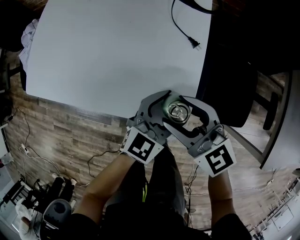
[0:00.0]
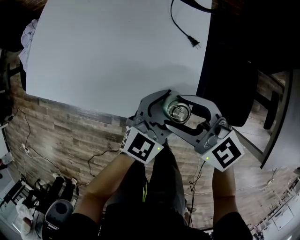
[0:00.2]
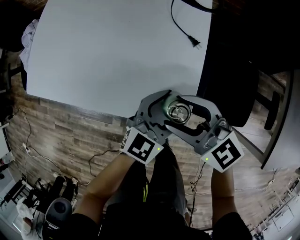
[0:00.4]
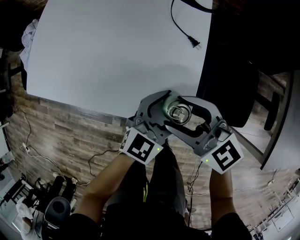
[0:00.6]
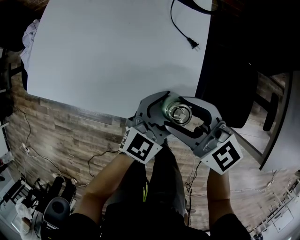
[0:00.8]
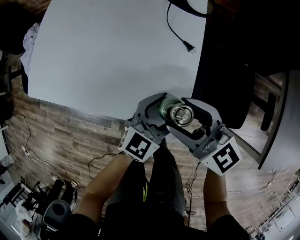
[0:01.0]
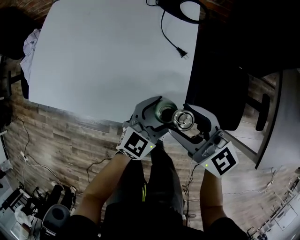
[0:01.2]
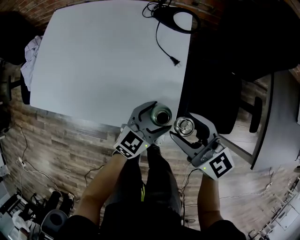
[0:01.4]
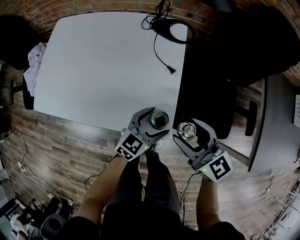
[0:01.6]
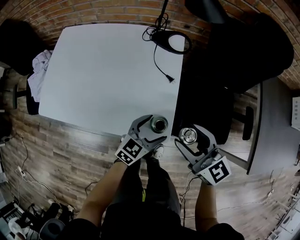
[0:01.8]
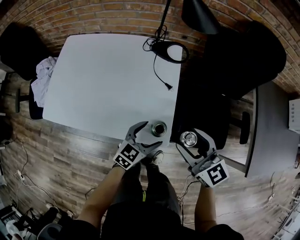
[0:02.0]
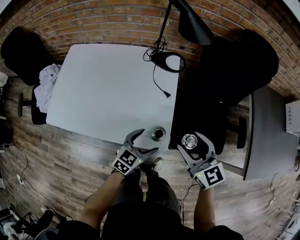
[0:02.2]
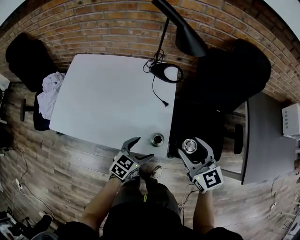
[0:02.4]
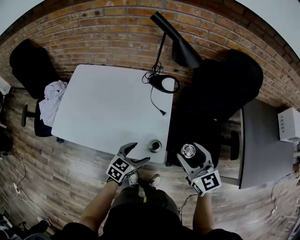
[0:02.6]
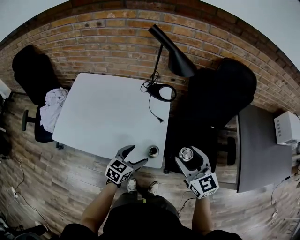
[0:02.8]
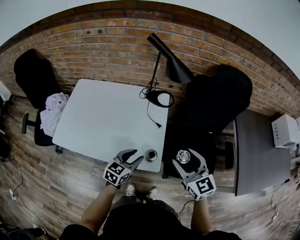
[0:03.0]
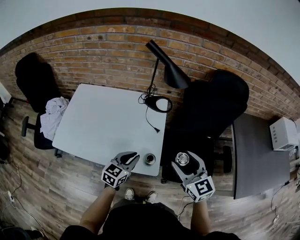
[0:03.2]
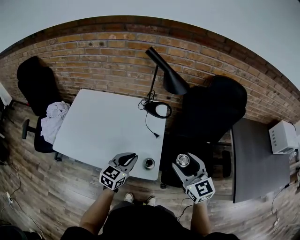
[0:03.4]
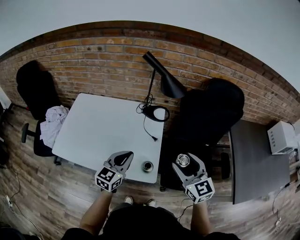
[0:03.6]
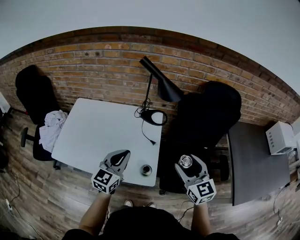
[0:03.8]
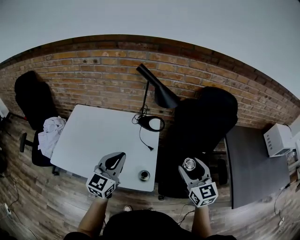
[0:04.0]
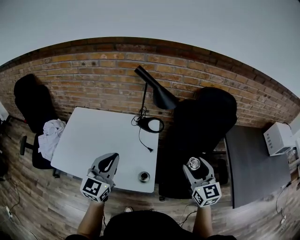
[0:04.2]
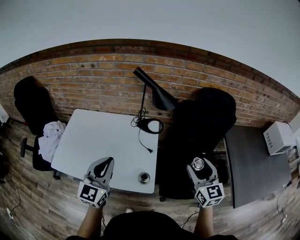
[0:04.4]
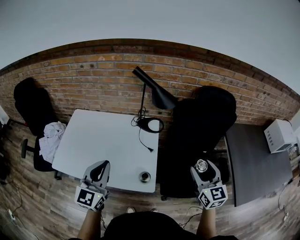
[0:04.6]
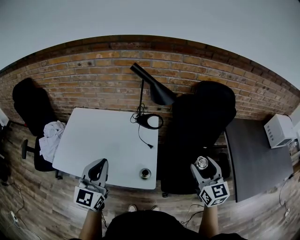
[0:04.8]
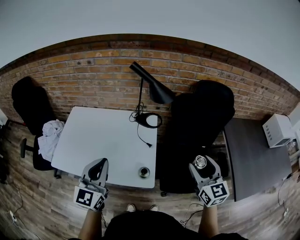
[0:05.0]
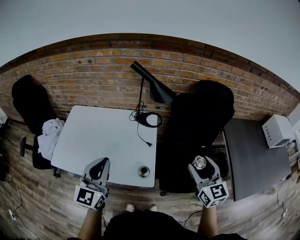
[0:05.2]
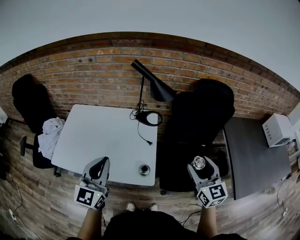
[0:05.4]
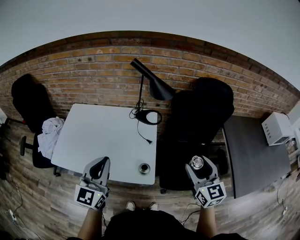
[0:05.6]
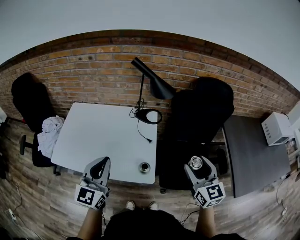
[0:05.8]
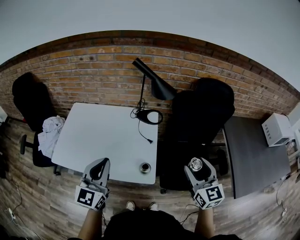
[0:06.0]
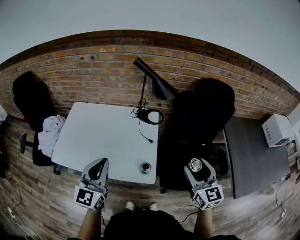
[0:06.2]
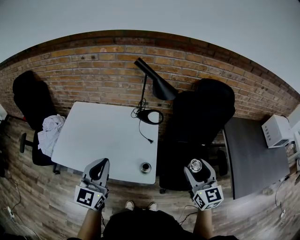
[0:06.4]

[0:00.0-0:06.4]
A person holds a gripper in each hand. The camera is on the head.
0.0 to 1.6 s: The right gripper is displaced to the right and upward by roughly 10 cm.
1.6 to 3.2 s: The right gripper heads upward and to the right, covering approximately 15 cm. Meanwhile the left gripper is displaced upward and to the left by some 15 cm, and closes its fingers.
3.2 to 4.8 s: The left gripper travels upward by roughly 20 cm, and rotates some 30 degrees, while the right gripper shifts about 15 cm to the right and upward.
4.8 to 6.4 s: The right gripper ends up roughly 5 cm from where it was.

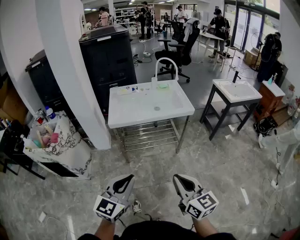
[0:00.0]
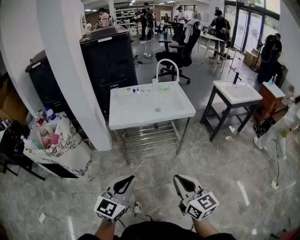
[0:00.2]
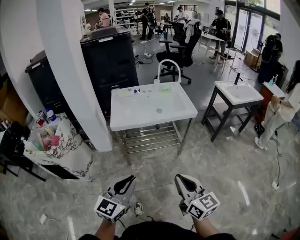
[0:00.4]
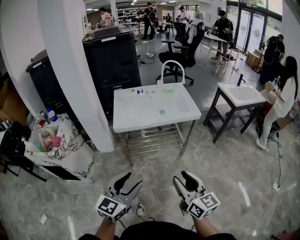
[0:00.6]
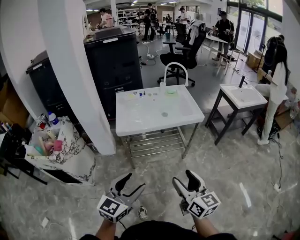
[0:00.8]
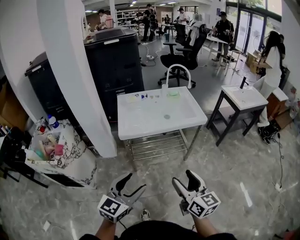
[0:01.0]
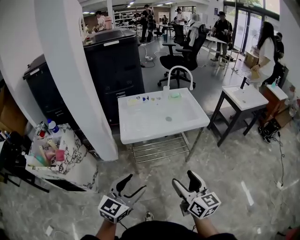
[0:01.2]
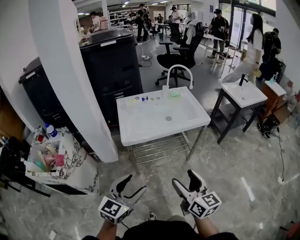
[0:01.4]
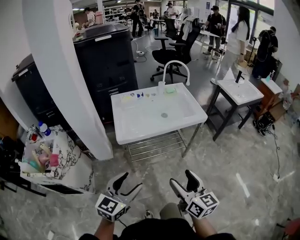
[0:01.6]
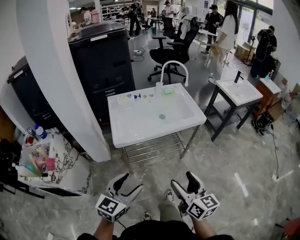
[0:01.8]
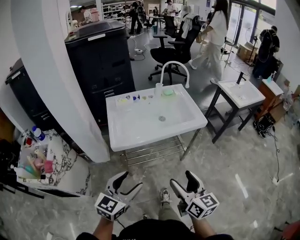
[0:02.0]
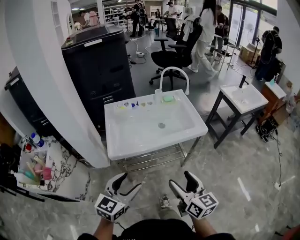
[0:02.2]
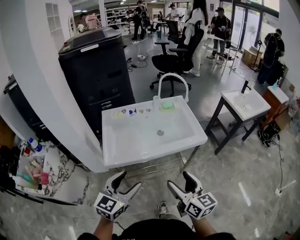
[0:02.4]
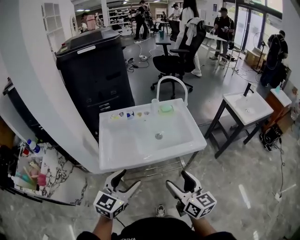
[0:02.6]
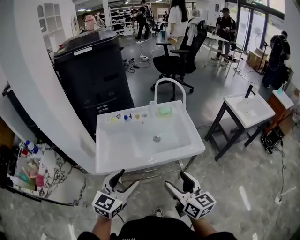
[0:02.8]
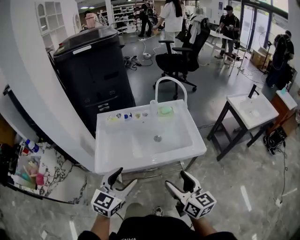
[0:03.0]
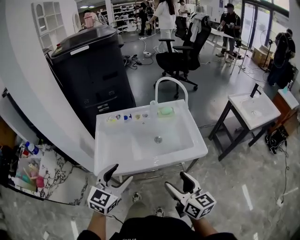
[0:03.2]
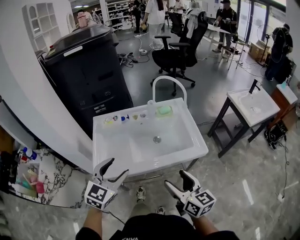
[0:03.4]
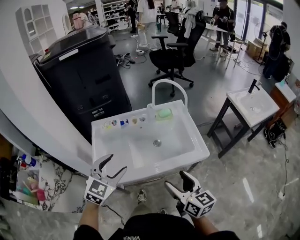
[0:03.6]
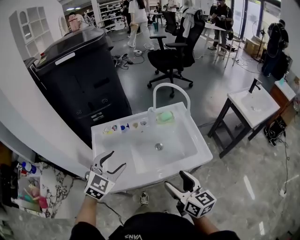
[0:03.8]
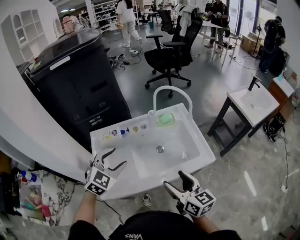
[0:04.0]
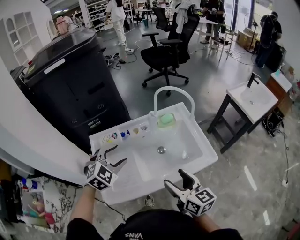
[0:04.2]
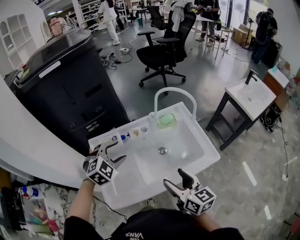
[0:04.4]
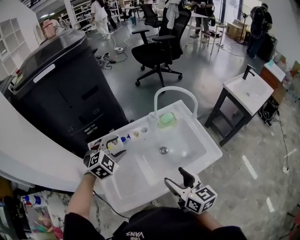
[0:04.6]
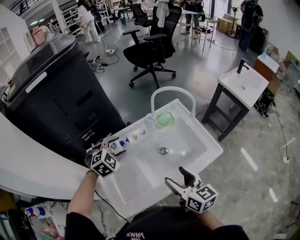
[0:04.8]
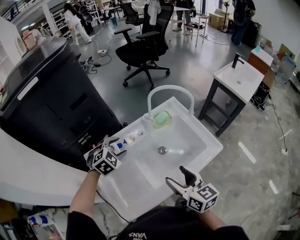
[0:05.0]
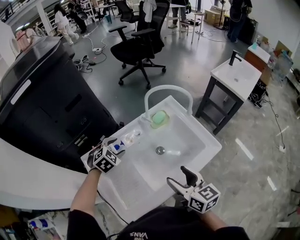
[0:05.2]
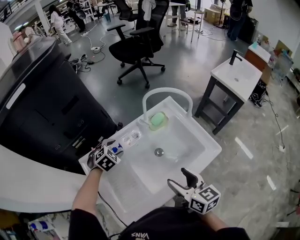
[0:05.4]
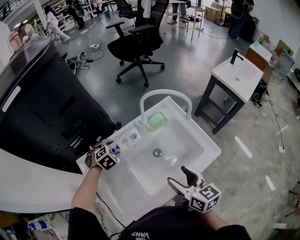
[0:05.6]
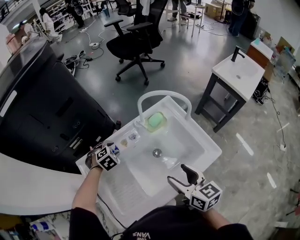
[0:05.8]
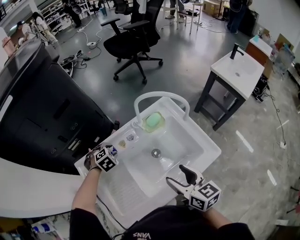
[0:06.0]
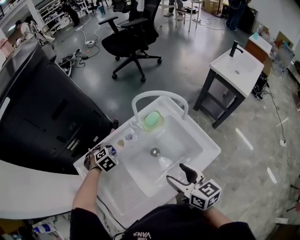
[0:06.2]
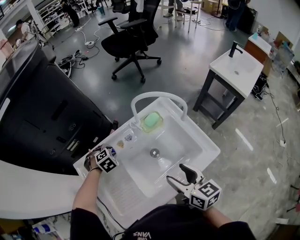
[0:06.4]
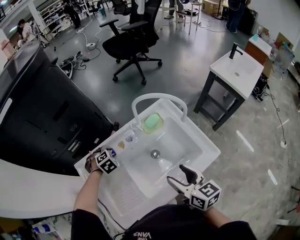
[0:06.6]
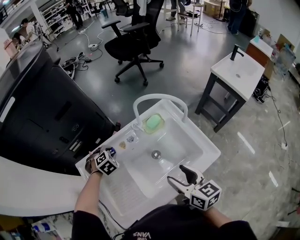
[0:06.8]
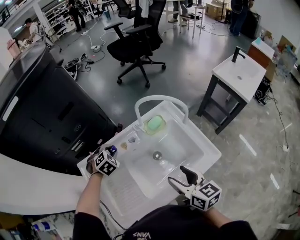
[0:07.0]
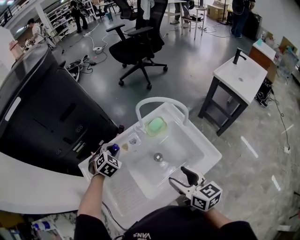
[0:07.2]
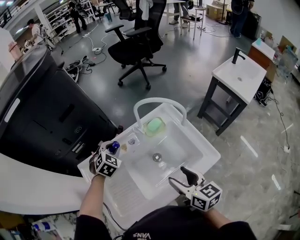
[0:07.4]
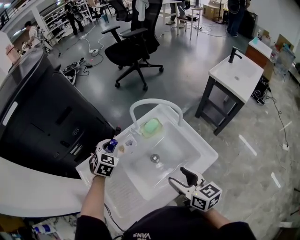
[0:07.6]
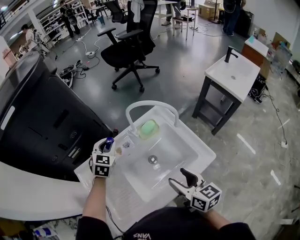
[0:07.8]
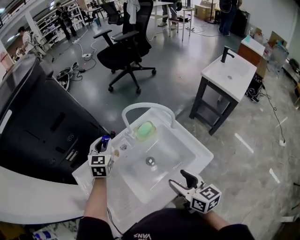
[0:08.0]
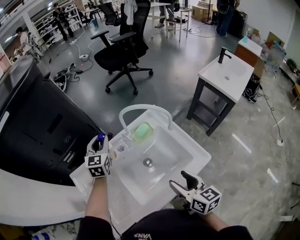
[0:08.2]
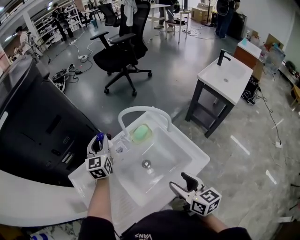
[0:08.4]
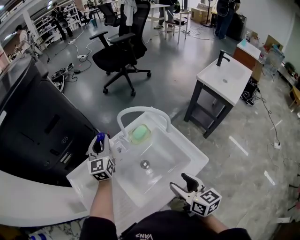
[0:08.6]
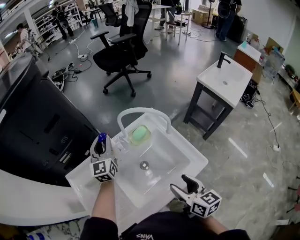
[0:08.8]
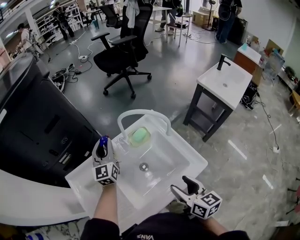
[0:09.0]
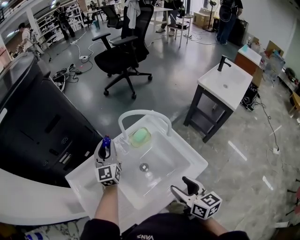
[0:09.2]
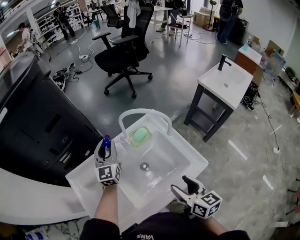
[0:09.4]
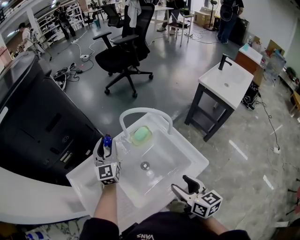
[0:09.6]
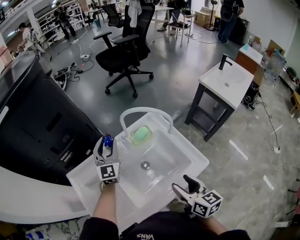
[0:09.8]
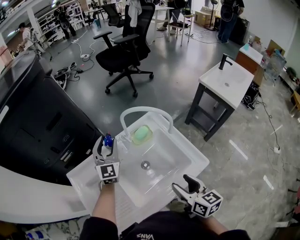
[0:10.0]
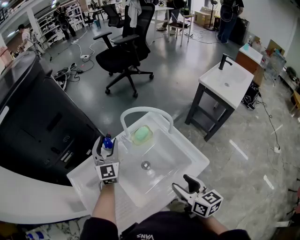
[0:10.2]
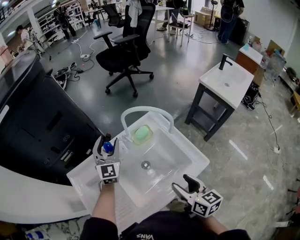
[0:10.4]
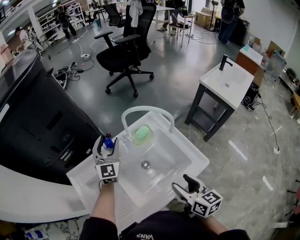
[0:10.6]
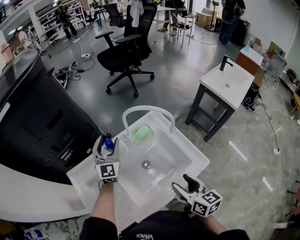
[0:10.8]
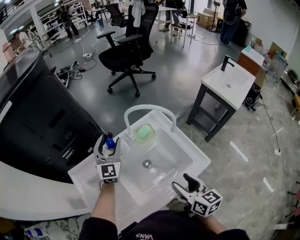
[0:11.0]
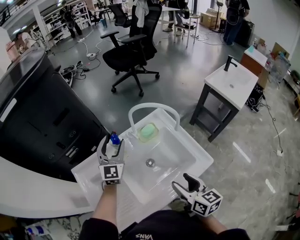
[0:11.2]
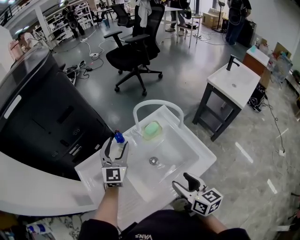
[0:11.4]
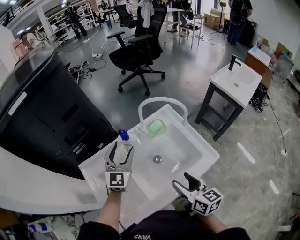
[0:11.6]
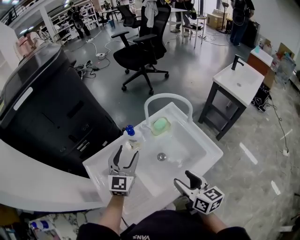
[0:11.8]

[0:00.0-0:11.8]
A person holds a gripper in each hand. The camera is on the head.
0.0 to 1.4 s: The left gripper heads to the left and forward, covering about 15 cm, and opens. Meanwhile the right gripper goes roughly 15 cm forward and to the left, and opens.
1.4 to 3.0 s: Both grippers travel together forward, roughly 25 cm.
3.0 to 4.4 s: The left gripper travels forward by roughly 30 cm, and rotates some 50 degrees. Meanwhile the right gripper is displaced forward and to the left by roughly 20 cm.
4.4 to 6.0 s: The left gripper goes roughly 25 cm downward and forward, and turns by roughly 30 degrees; the right gripper goes about 10 cm forward.
6.0 to 7.4 s: The left gripper heads upward, covering approximately 10 cm, and changes its angle by approximately 30 degrees.
7.4 to 8.8 s: The right gripper shifts approximately 5 cm to the right, while the left gripper moves upward and forward, about 10 cm, and angles its fingers upward, by about 50 degrees.
8.8 to 10.4 s: The left gripper opens.
10.4 to 11.8 s: The left gripper moves backward, approximately 10 cm, while the right gripper is displaced to the left by roughly 5 cm.

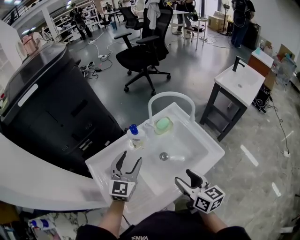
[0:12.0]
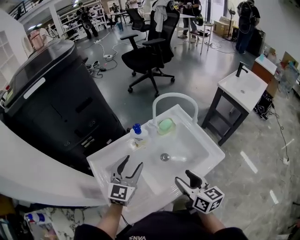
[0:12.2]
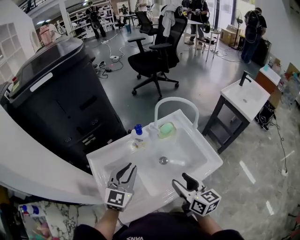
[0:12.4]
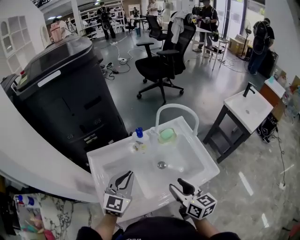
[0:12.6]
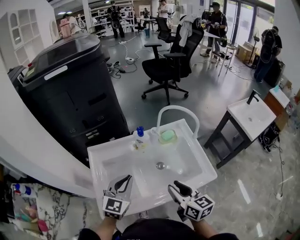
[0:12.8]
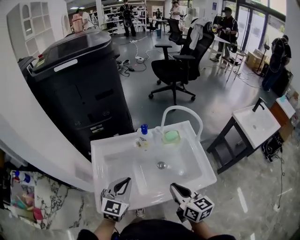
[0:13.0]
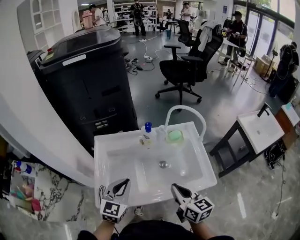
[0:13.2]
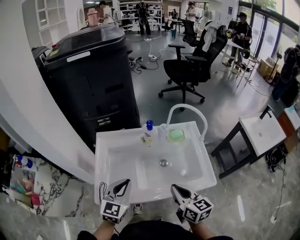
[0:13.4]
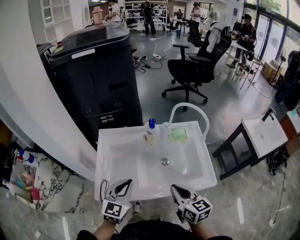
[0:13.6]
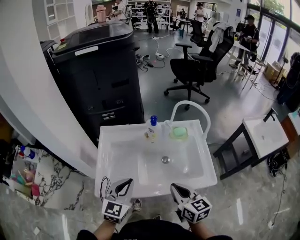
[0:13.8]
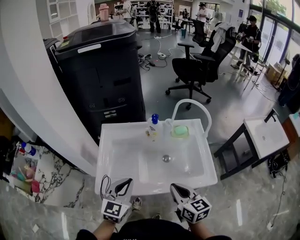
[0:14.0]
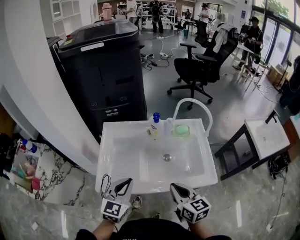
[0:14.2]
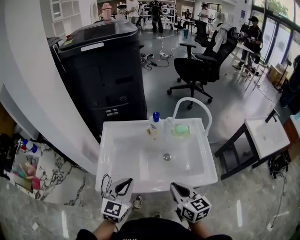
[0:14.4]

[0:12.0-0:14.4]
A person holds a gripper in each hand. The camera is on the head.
12.0 to 13.2 s: The right gripper swivels about 20 degrees, and closes up. The left gripper moves backward, roughly 15 cm, swivels roughly 20 degrees, and closes up.
13.2 to 14.4 s: The left gripper shifts about 5 cm backward.

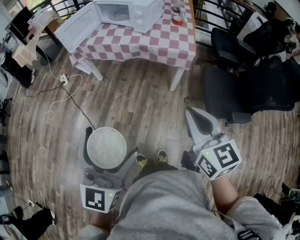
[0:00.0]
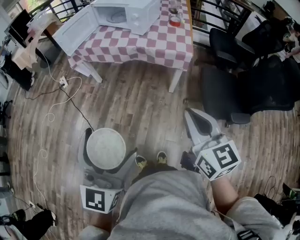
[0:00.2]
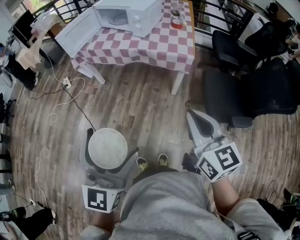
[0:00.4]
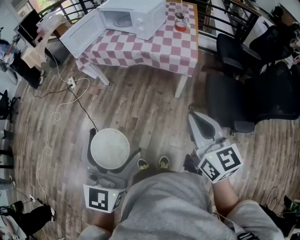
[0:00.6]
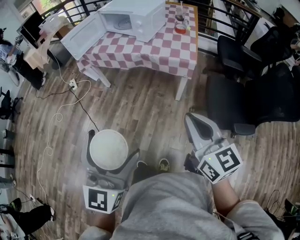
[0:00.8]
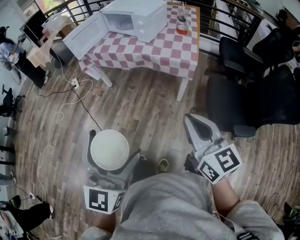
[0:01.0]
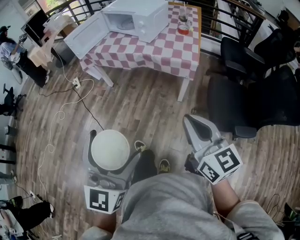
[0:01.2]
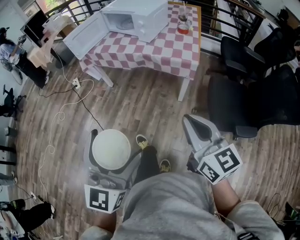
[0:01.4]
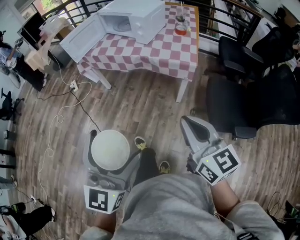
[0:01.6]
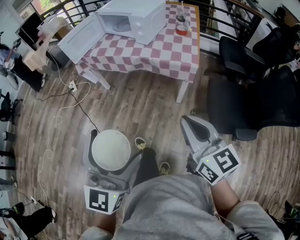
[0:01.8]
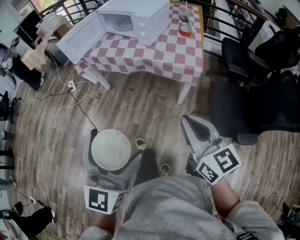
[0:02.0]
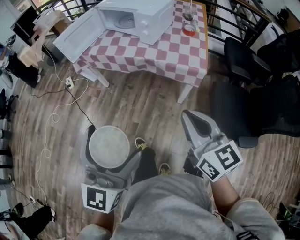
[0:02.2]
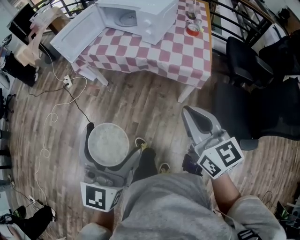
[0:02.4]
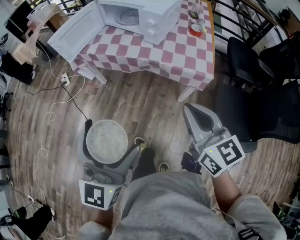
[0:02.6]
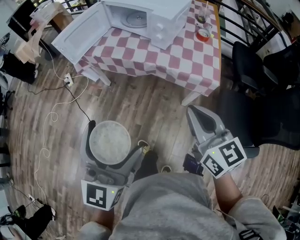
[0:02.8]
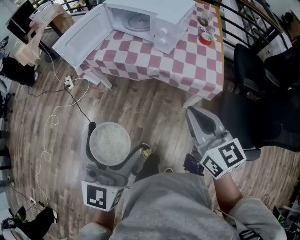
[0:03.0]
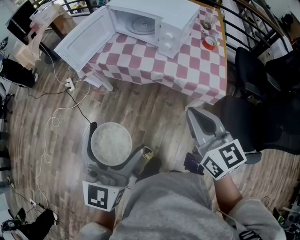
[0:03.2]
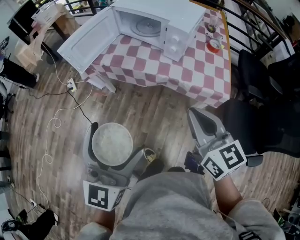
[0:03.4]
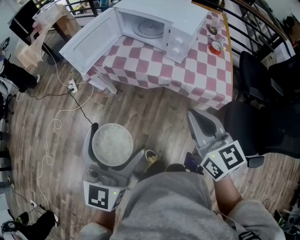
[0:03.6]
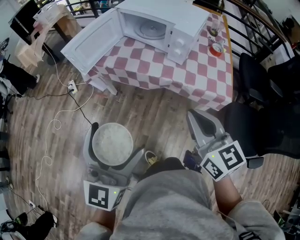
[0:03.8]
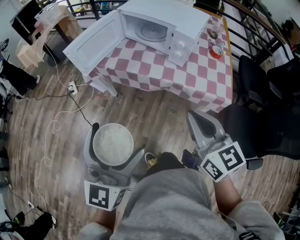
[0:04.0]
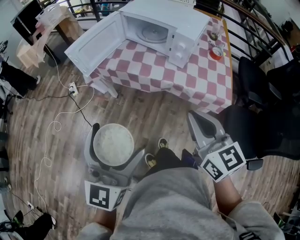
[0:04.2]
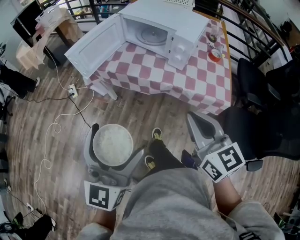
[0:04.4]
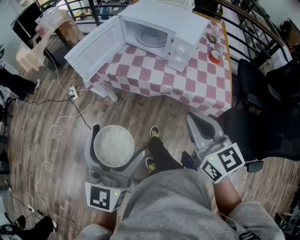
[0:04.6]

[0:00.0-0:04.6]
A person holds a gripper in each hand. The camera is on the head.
0.0 to 1.6 s: The right gripper goes some 5 cm to the right; the left gripper is displaced to the right by approximately 10 cm.
1.6 to 3.0 s: The right gripper travels forward by about 25 cm. Meanwhile the left gripper shifts some 25 cm forward and to the left.
3.0 to 4.6 s: Both grippers travel together to the left and forward, about 10 cm.
